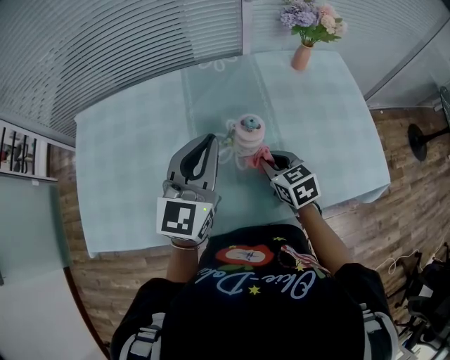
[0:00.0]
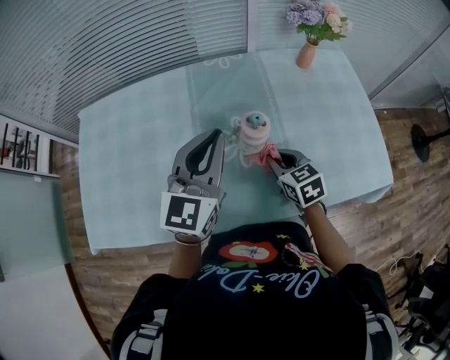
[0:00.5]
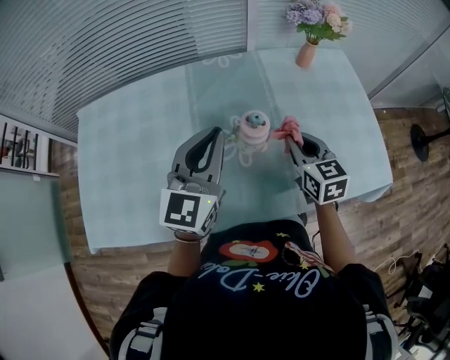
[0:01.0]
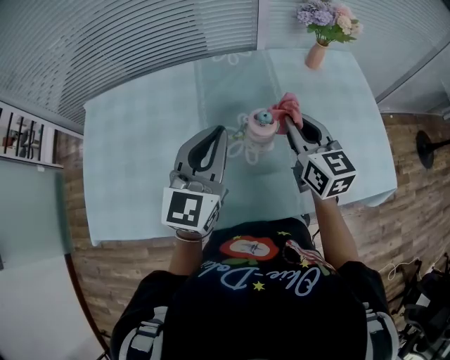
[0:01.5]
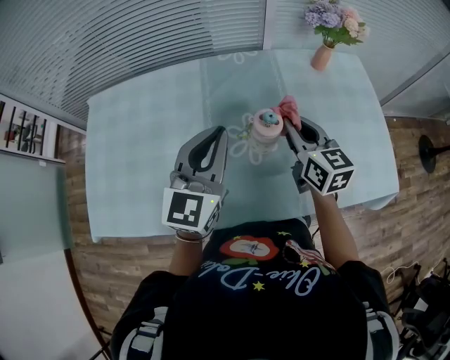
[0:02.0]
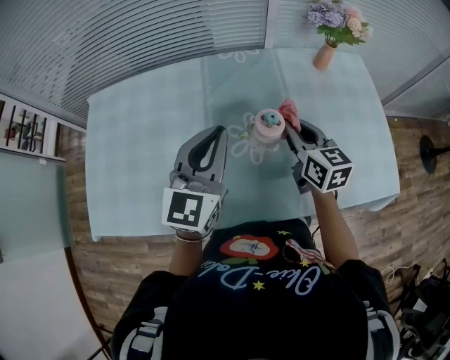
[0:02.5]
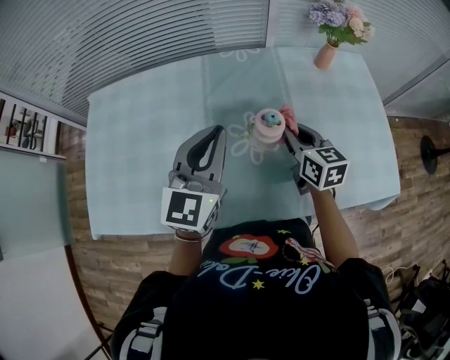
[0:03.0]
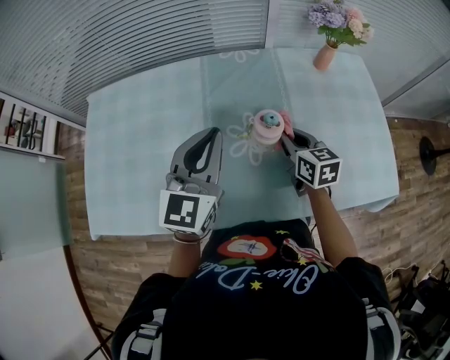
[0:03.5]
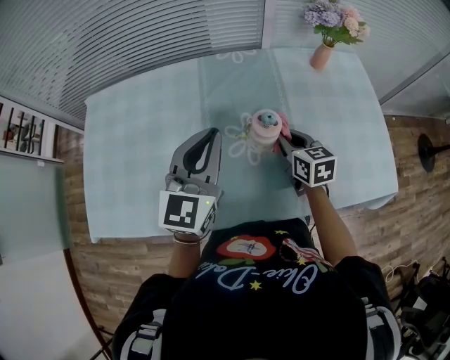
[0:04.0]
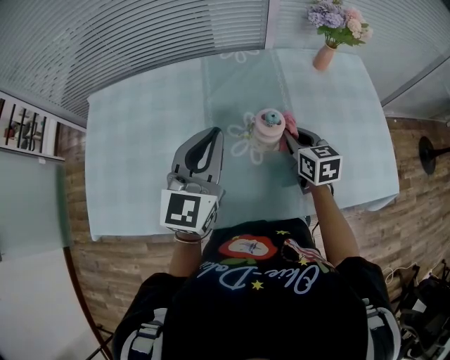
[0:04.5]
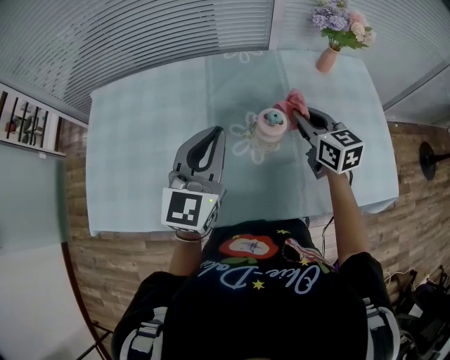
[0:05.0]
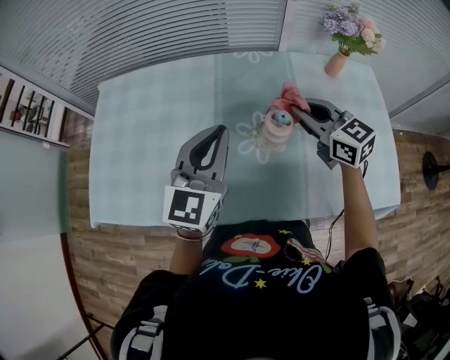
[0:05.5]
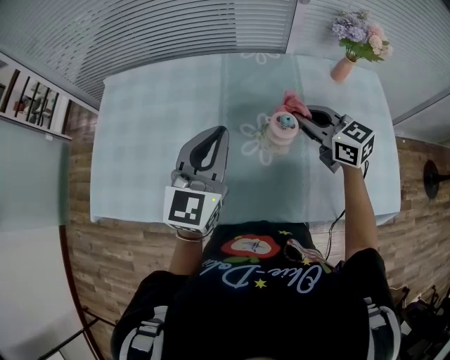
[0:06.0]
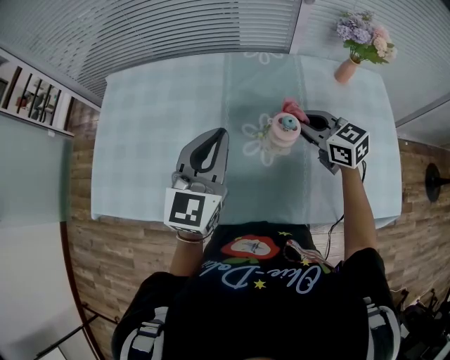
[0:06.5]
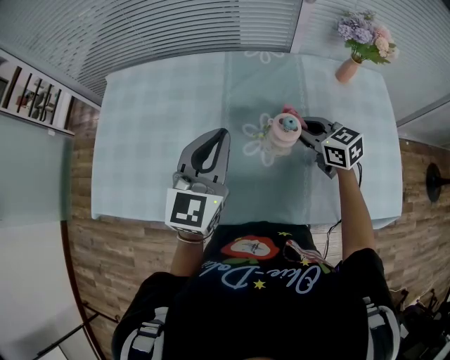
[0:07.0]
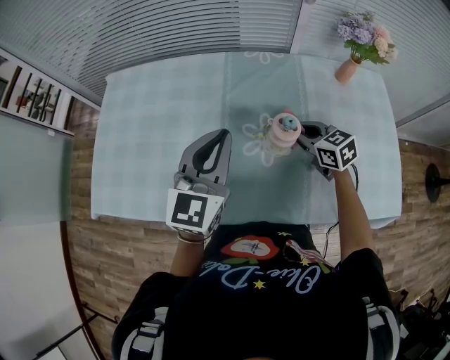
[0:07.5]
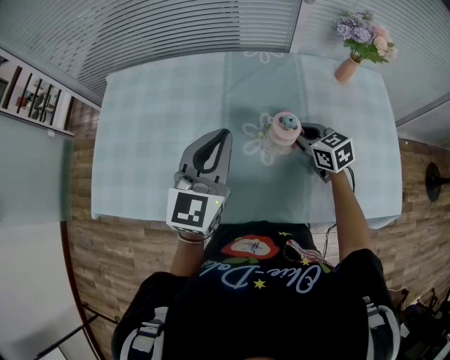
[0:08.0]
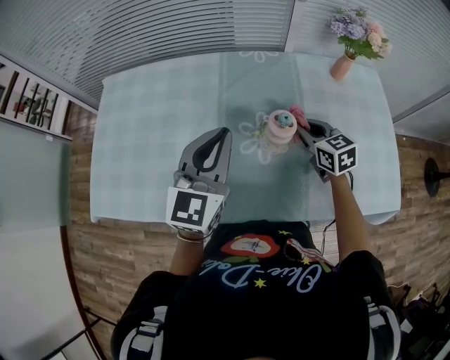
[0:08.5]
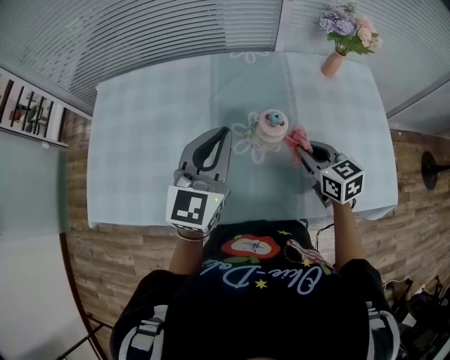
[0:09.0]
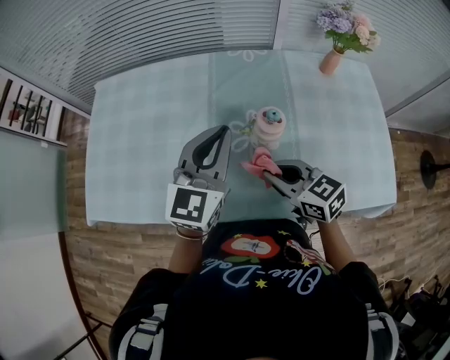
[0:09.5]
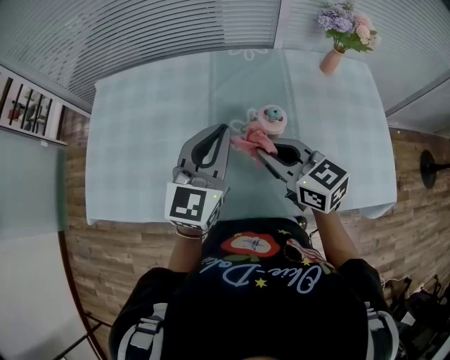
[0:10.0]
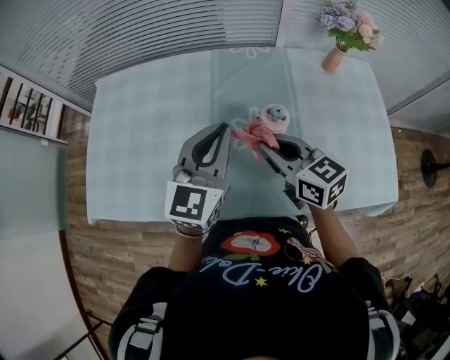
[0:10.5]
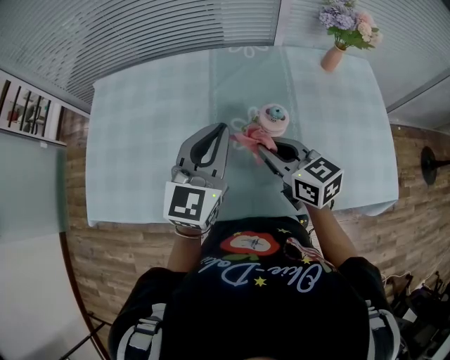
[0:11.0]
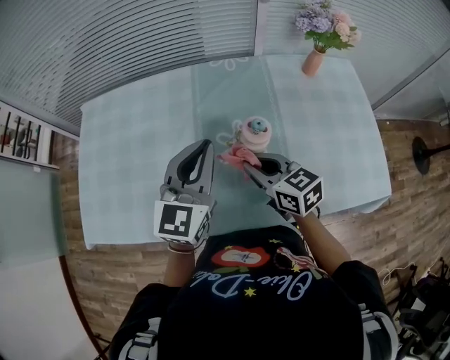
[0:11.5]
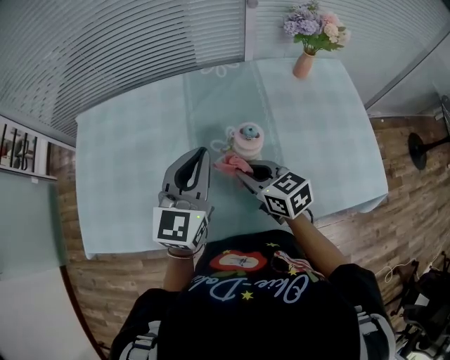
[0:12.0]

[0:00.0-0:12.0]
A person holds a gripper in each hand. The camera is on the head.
0:00.0 to 0:02.0: The right gripper is displaced upward and forward by roughly 15 cm, and rotates roughly 30 degrees.
0:02.0 to 0:04.0: The right gripper goes about 10 cm downward.
0:04.0 to 0:06.0: The right gripper is displaced upward by roughly 10 cm, and turns by about 30 degrees.
0:06.0 to 0:08.0: The right gripper goes some 10 cm downward.
0:08.0 to 0:10.0: The right gripper travels upward, to the left and backward by about 20 cm.
0:10.0 to 0:12.0: The right gripper shifts approximately 10 cm downward.

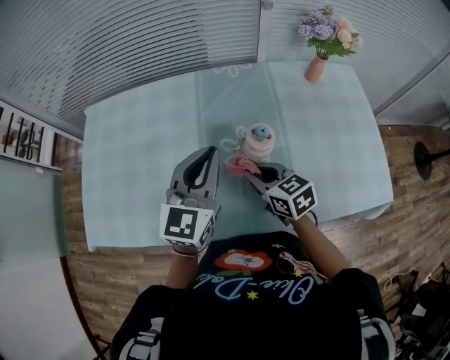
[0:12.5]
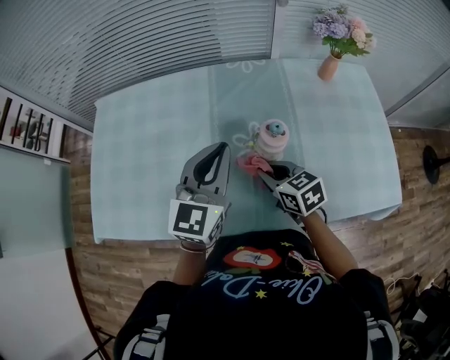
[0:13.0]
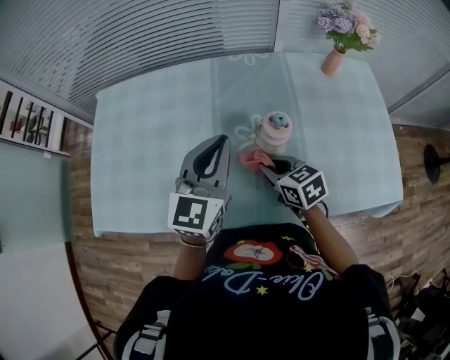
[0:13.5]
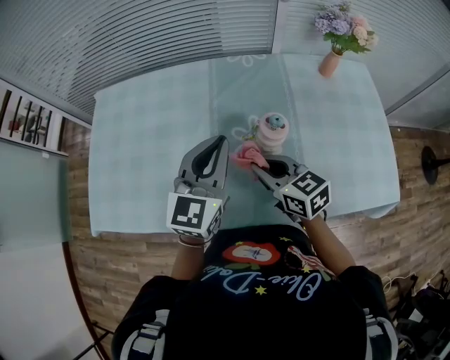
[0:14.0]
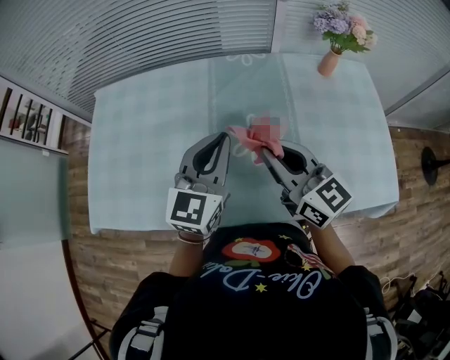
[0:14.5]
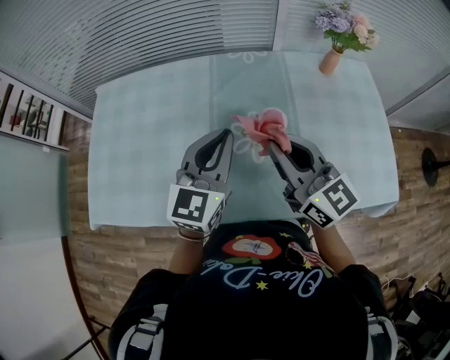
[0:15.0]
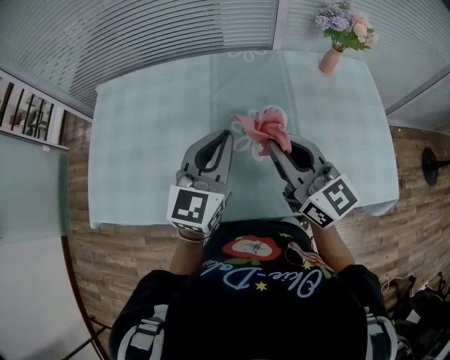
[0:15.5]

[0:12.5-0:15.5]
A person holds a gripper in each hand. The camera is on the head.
0:12.5 to 0:14.0: The grippers make only small movements.
0:14.0 to 0:15.5: The right gripper shifts approximately 15 cm upward, and swivels some 30 degrees.

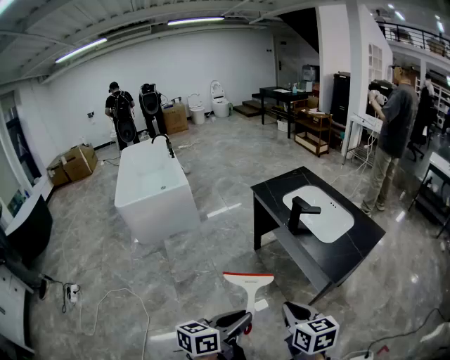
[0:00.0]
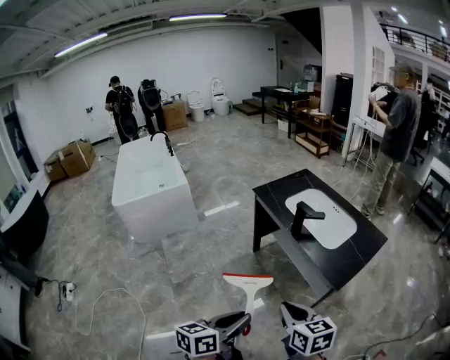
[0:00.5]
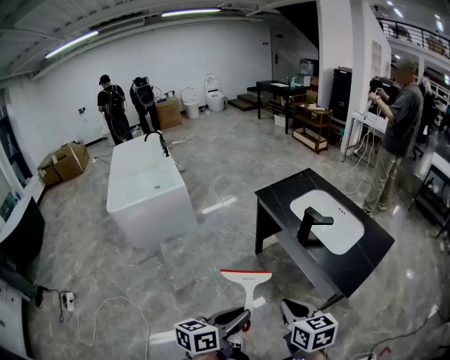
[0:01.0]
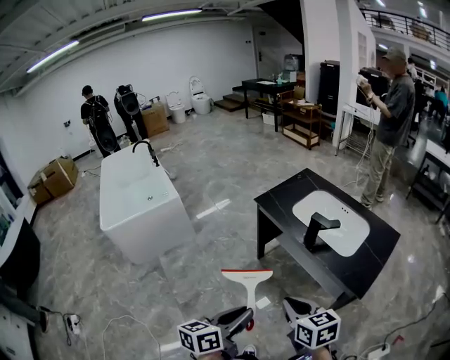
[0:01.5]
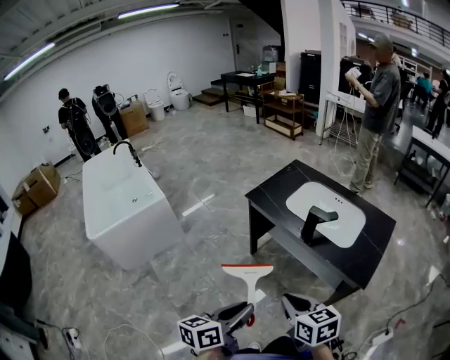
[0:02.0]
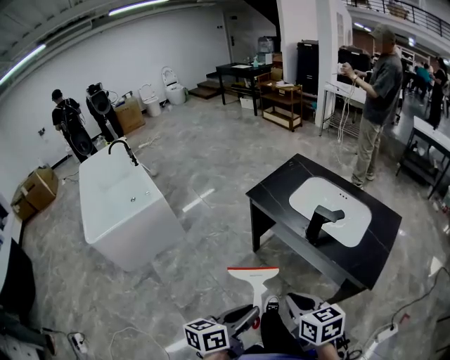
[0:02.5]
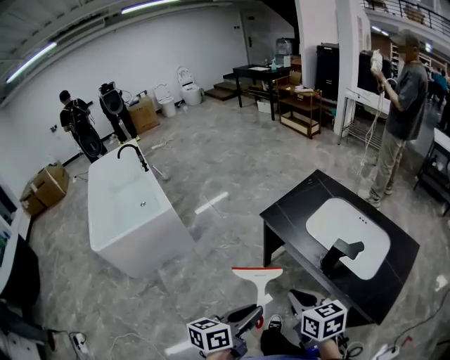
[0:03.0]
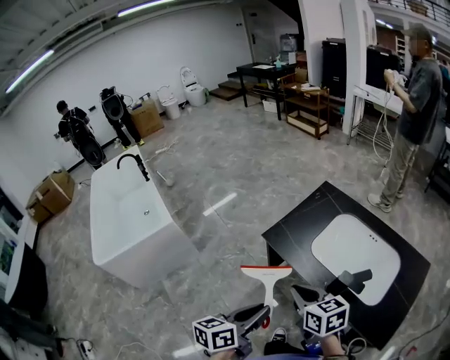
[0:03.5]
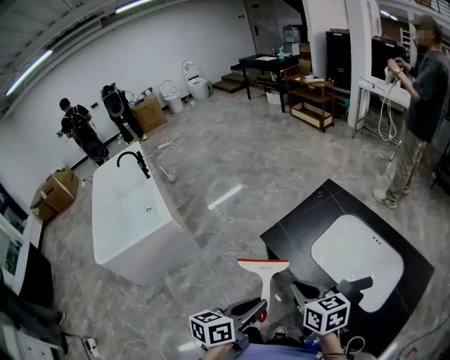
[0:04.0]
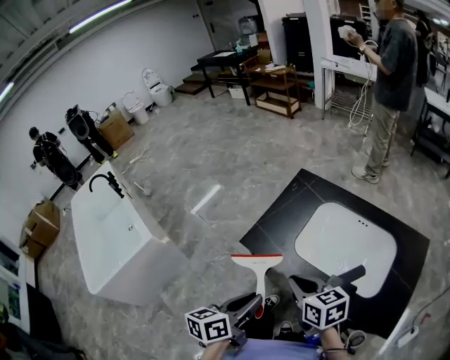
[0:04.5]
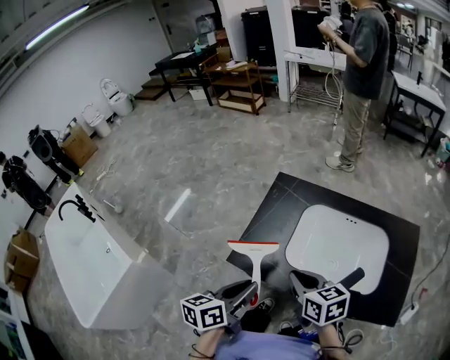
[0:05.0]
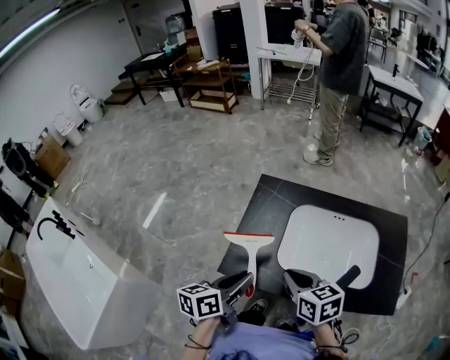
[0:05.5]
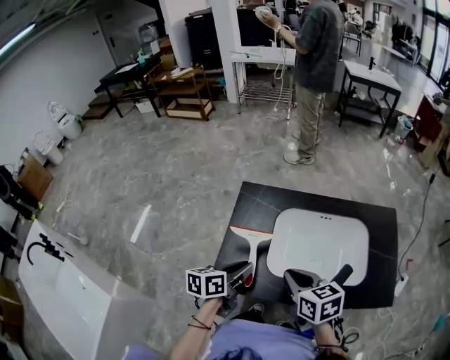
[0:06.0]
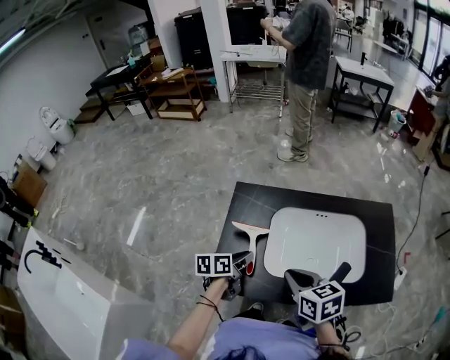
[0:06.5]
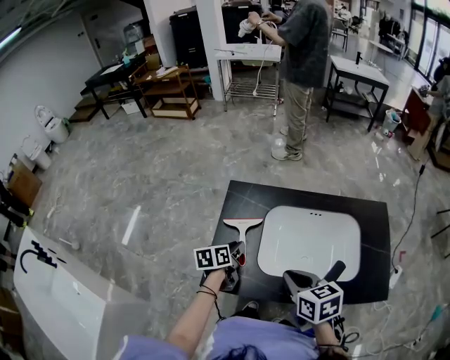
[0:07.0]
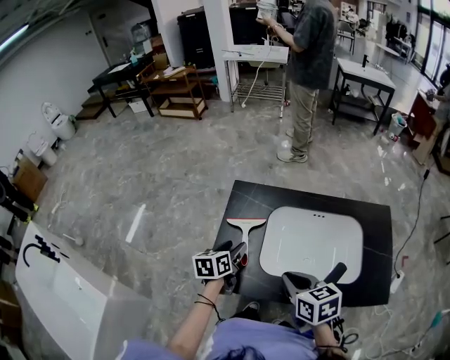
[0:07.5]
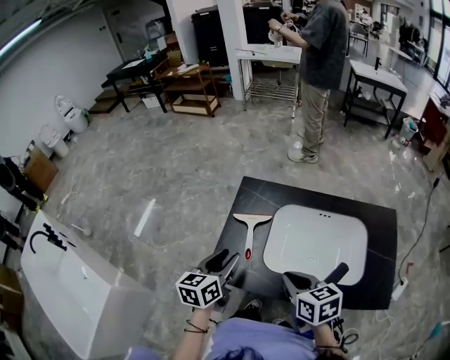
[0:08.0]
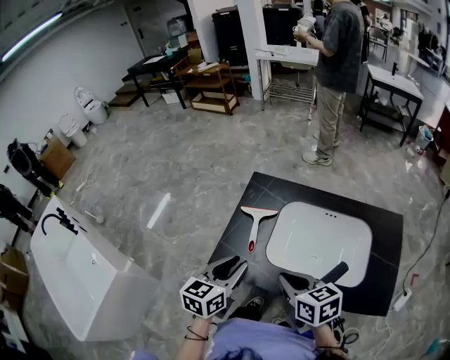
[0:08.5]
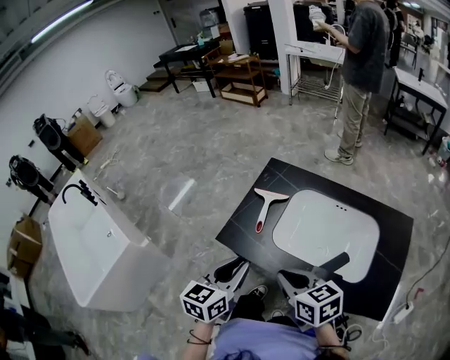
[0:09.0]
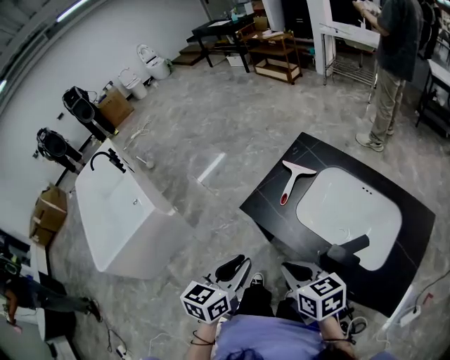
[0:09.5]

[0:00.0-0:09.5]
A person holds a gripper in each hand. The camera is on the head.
0:00.0 to 0:02.0: The grippers both shift forward and to the left by about 25 cm.
0:02.0 to 0:04.0: The two grippers go roughly 35 cm forward.
0:04.0 to 0:05.5: The right gripper changes place by about 15 cm, and turns by some 30 degrees; the left gripper ends up approximately 25 cm from where it was, and rotates roughly 30 degrees.
0:05.5 to 0:07.5: The left gripper shifts about 20 cm forward and downward, and opens its fingers. The right gripper ends up approximately 5 cm from where it was.
0:07.5 to 0:09.5: The left gripper moves about 35 cm, changes its angle by approximately 30 degrees, and closes its fingers, while the right gripper changes place by about 15 cm, and swivels some 40 degrees.

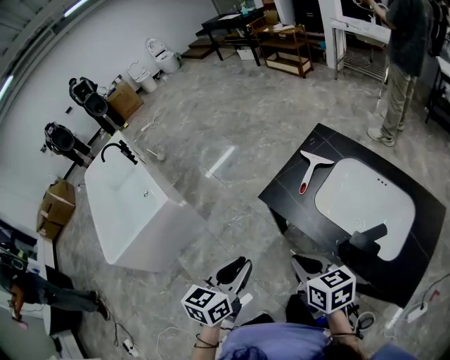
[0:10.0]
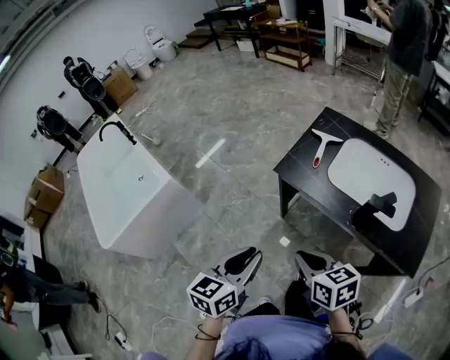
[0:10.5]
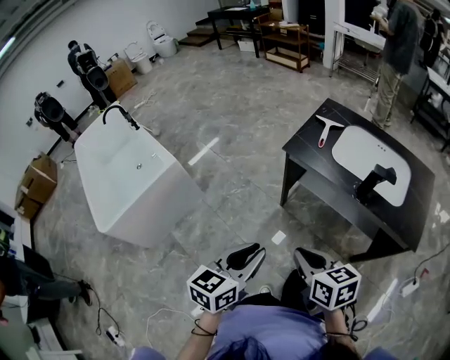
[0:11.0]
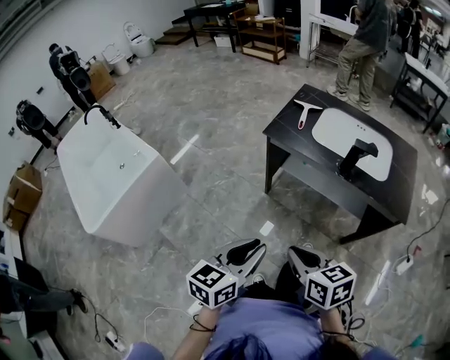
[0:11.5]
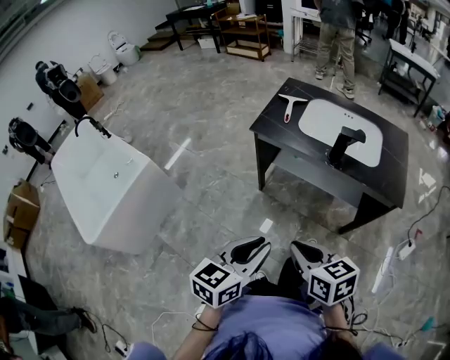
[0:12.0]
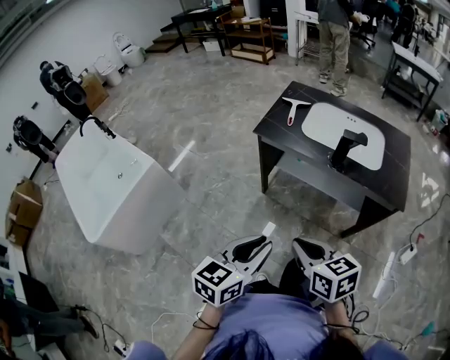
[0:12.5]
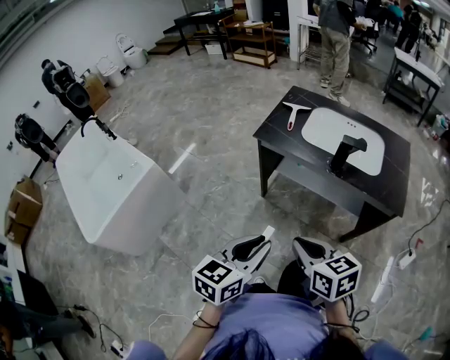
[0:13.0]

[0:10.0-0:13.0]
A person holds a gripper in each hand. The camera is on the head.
0:10.0 to 0:11.5: The left gripper moves backward, some 25 cm, and turns by some 20 degrees. The right gripper is displaced backward and to the left by about 30 cm.
0:11.5 to 0:13.0: The grippers move only a little.
